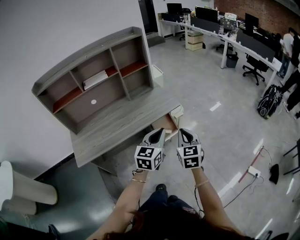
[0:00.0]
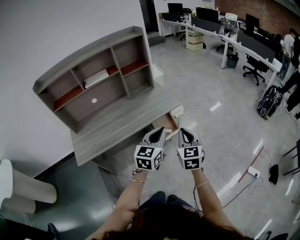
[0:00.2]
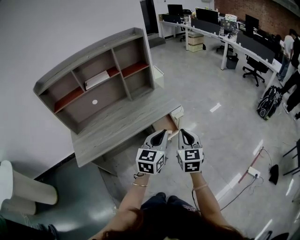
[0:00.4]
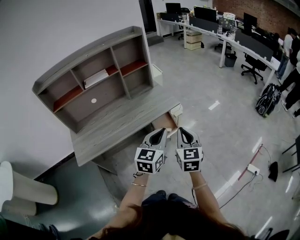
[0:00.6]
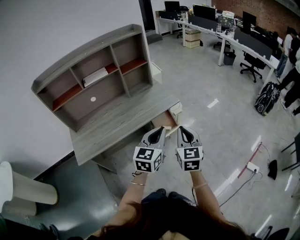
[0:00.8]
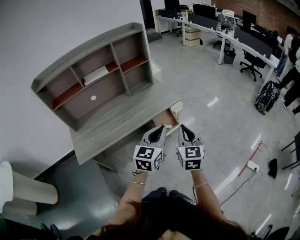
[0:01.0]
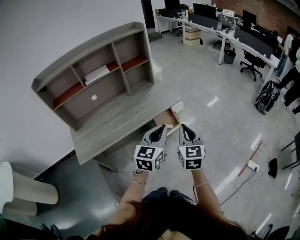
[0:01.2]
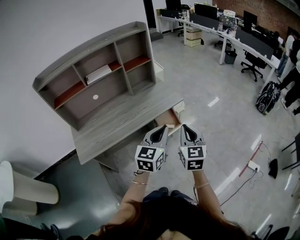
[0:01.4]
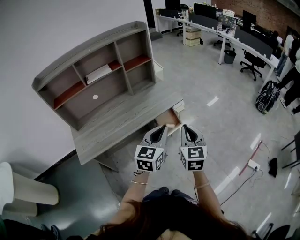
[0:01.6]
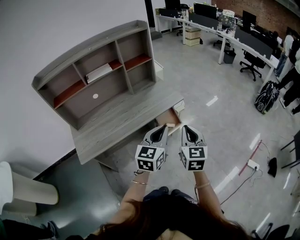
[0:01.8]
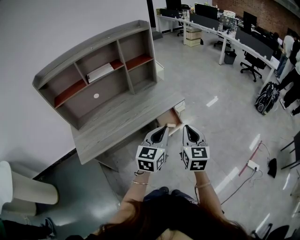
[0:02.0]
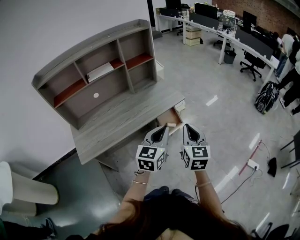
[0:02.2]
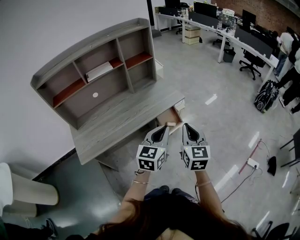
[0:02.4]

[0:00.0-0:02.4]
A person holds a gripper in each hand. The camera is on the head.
0:00.0 to 0:01.2: The right gripper moves approximately 5 cm.
0:01.2 to 0:02.4: The grippers move only a little.

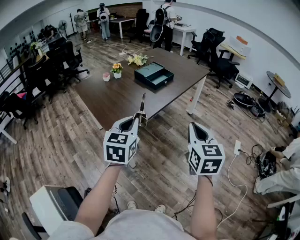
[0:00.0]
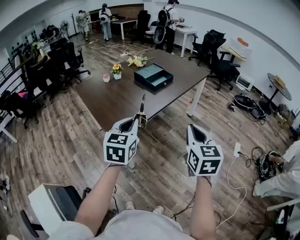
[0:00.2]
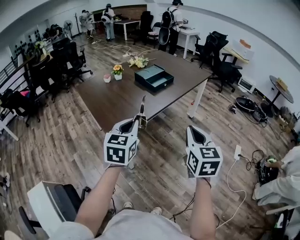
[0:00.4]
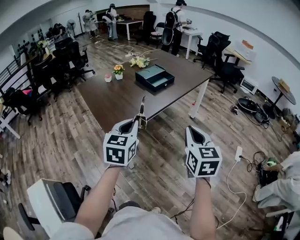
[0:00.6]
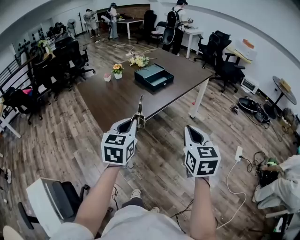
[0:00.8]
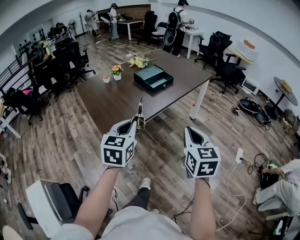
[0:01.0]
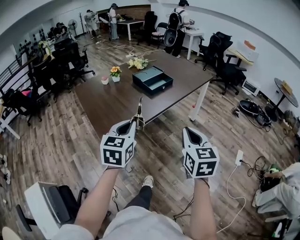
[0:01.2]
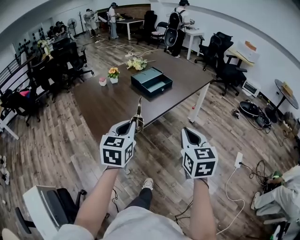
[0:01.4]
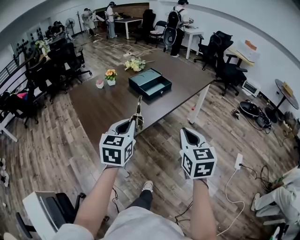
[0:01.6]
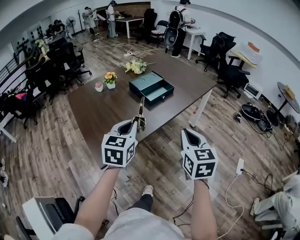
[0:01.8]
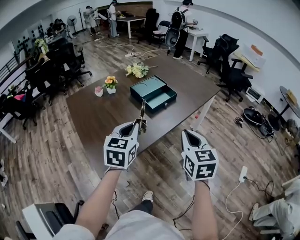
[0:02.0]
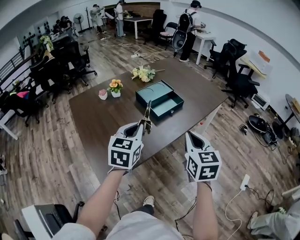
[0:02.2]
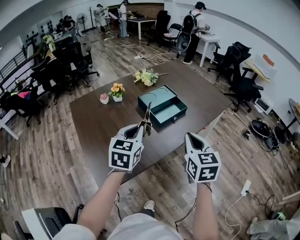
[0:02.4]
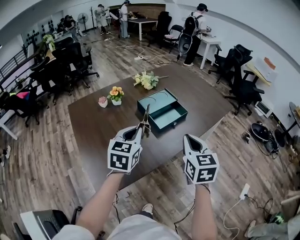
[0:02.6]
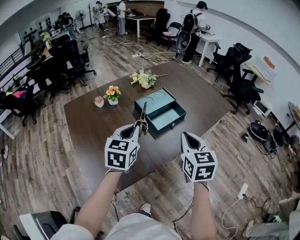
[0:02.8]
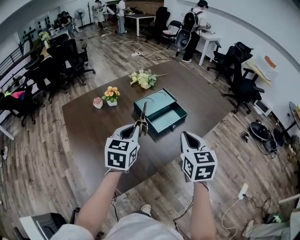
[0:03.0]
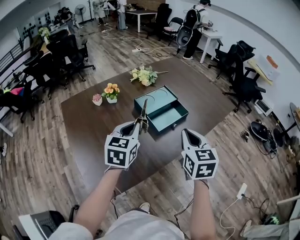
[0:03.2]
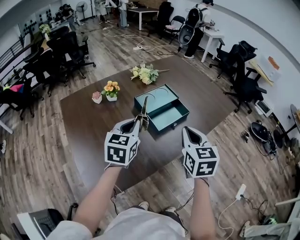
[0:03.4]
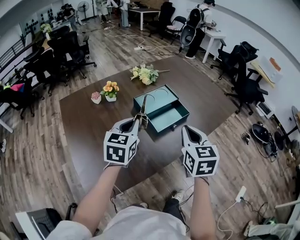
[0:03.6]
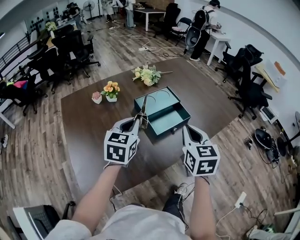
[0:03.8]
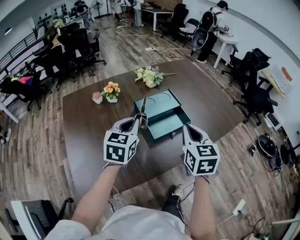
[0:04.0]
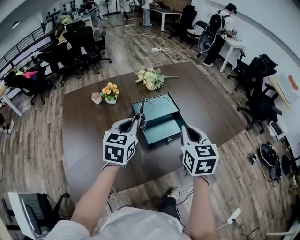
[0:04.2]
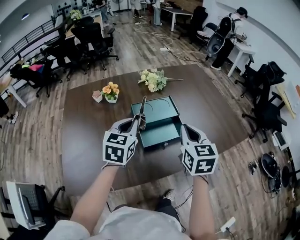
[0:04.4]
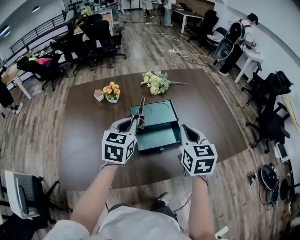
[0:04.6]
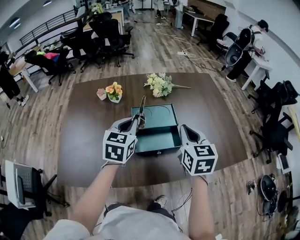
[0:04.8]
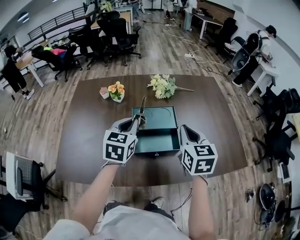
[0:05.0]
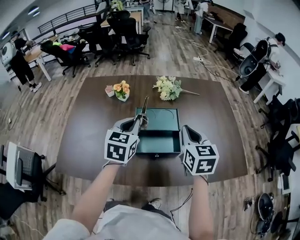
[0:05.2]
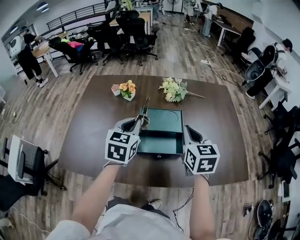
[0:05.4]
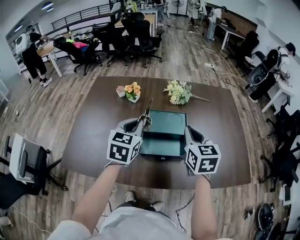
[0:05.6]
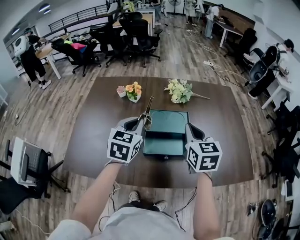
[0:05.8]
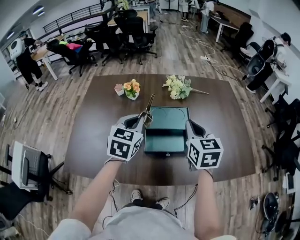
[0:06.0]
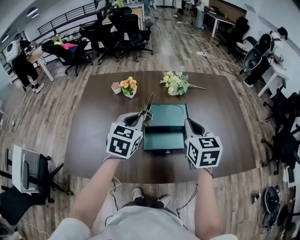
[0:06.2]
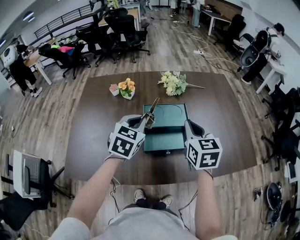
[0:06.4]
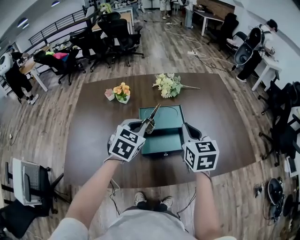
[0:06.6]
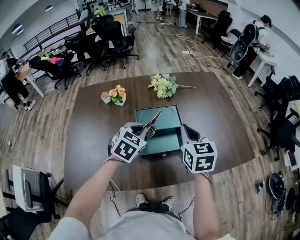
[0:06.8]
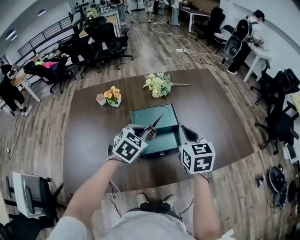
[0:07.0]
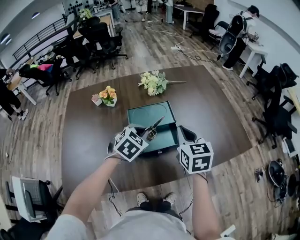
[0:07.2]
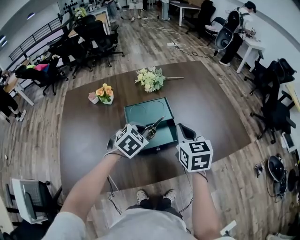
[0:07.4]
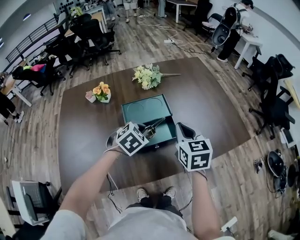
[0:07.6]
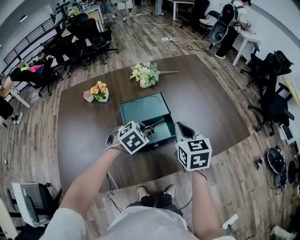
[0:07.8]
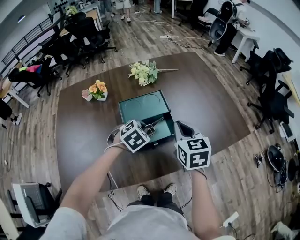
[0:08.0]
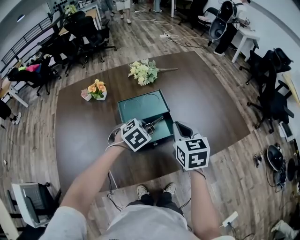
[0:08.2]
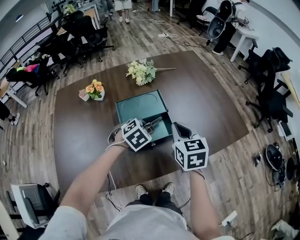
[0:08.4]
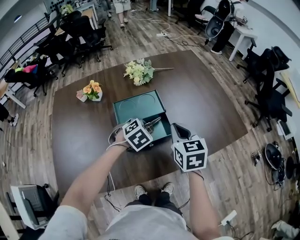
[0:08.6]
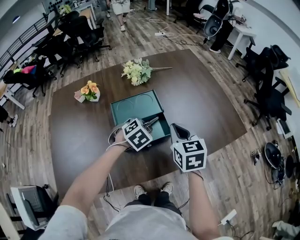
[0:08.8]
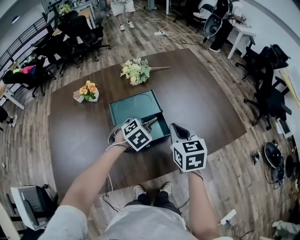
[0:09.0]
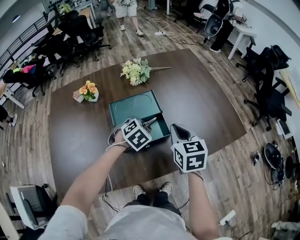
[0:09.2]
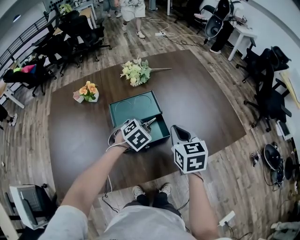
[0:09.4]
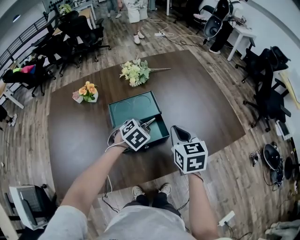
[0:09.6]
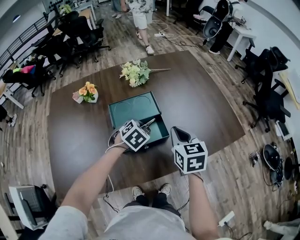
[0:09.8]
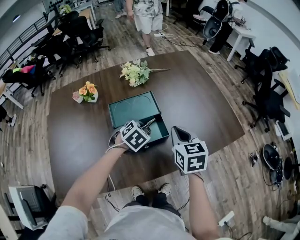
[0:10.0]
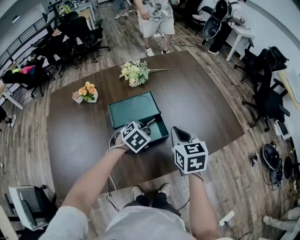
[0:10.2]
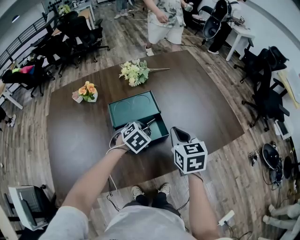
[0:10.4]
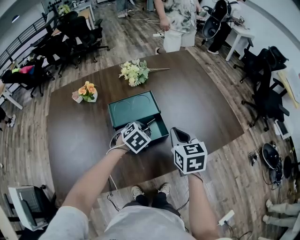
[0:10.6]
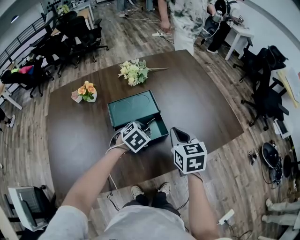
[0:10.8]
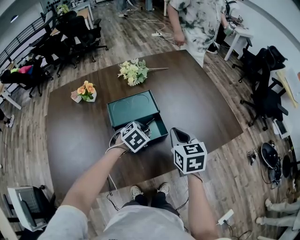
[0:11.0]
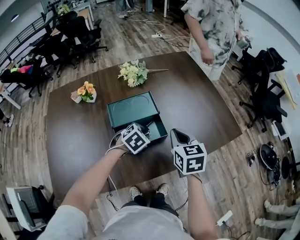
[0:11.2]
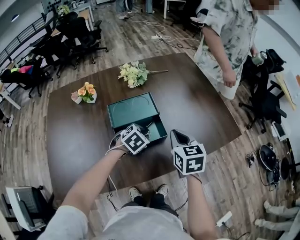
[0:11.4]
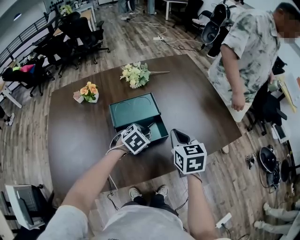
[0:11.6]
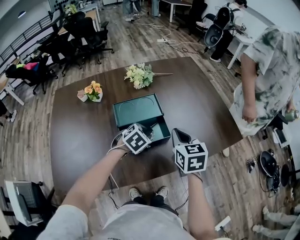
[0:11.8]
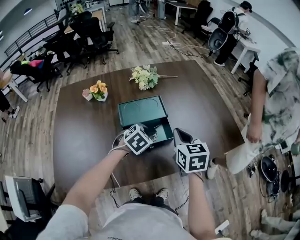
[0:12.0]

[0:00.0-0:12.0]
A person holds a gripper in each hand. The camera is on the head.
0:00.0 to 0:01.6: The right gripper travels forward by about 10 cm. The left gripper goes some 15 cm forward and to the right.
0:01.6 to 0:03.0: The grippers both shift forward by roughly 30 cm.
0:03.0 to 0:04.4: The right gripper moves forward, approximately 15 cm. Meanwhile the left gripper travels forward and to the right by approximately 15 cm.
0:04.4 to 0:06.0: The right gripper is displaced forward by about 10 cm.
0:06.0 to 0:07.6: The left gripper travels downward and to the right by some 15 cm, and swivels some 50 degrees. Meanwhile the right gripper is displaced downward by approximately 5 cm.
0:07.6 to 0:09.0: The left gripper shifts by roughly 5 cm.
0:09.0 to 0:12.0: There are only small adjustments of the grippers.

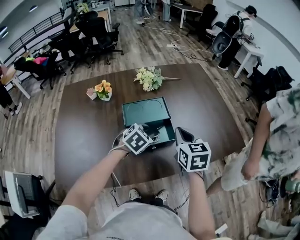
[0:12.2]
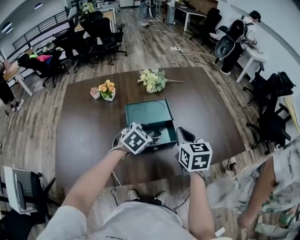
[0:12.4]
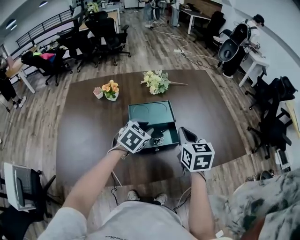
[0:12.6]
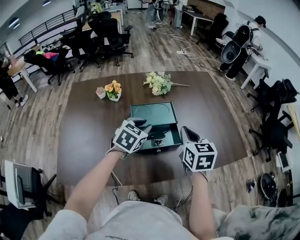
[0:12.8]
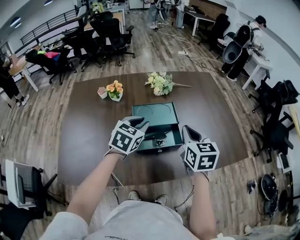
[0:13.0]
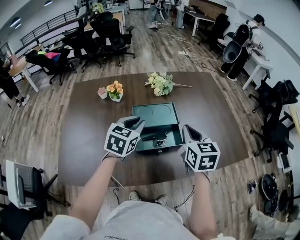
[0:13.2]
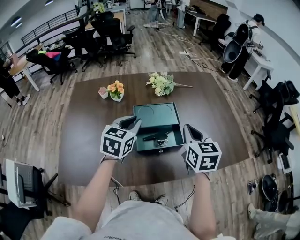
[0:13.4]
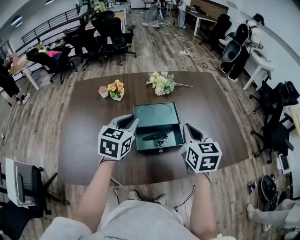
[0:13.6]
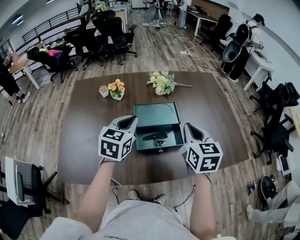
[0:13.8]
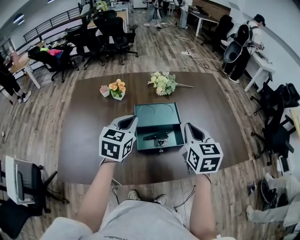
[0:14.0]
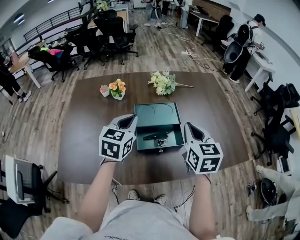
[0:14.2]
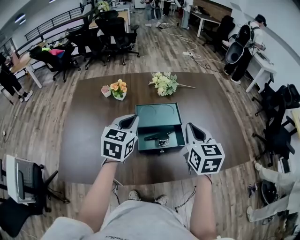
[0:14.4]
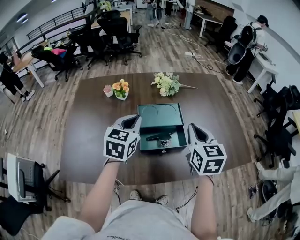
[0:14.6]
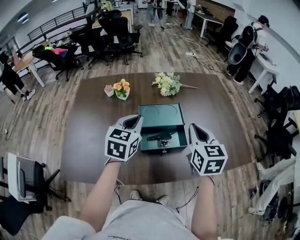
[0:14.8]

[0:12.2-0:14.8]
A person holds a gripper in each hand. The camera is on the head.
0:12.2 to 0:13.4: The left gripper heads upward and to the left, covering some 15 cm, and changes its angle by about 40 degrees.
0:13.4 to 0:14.8: The grippers make only small movements.

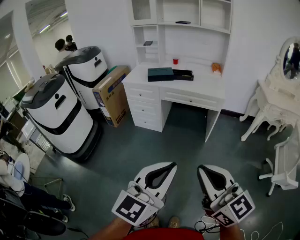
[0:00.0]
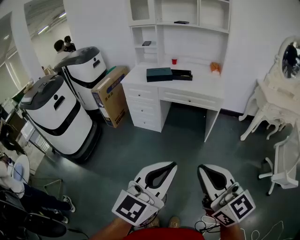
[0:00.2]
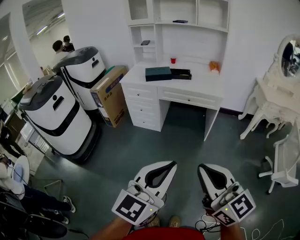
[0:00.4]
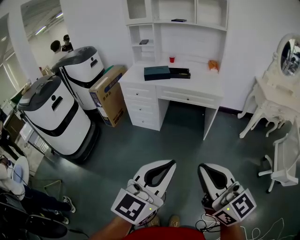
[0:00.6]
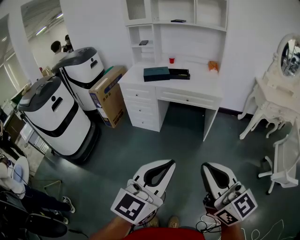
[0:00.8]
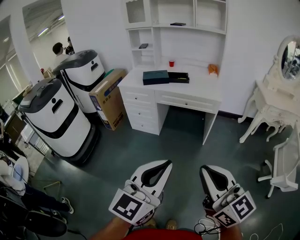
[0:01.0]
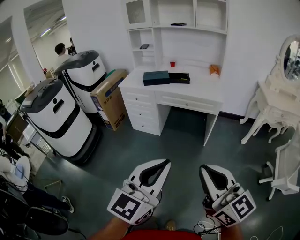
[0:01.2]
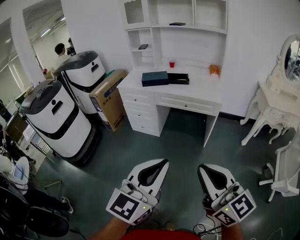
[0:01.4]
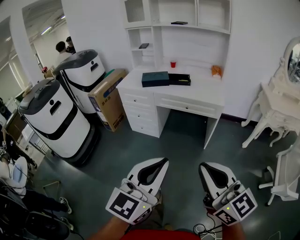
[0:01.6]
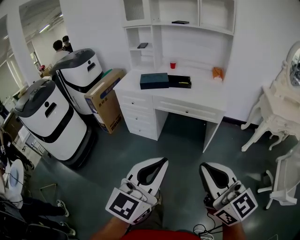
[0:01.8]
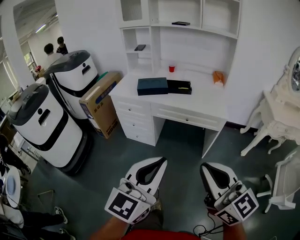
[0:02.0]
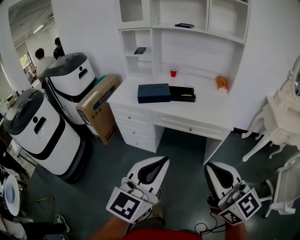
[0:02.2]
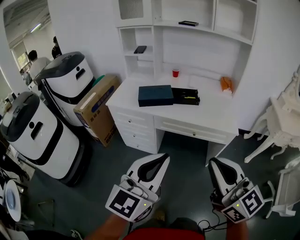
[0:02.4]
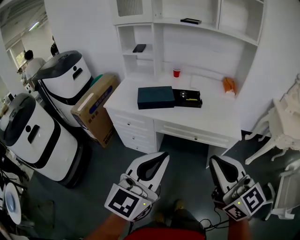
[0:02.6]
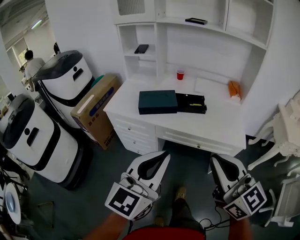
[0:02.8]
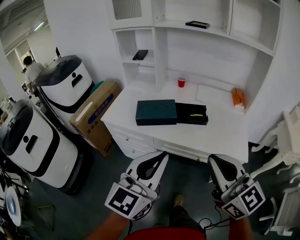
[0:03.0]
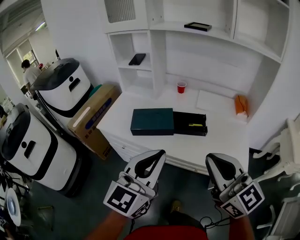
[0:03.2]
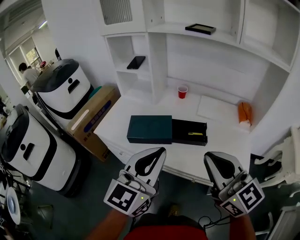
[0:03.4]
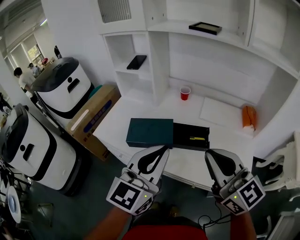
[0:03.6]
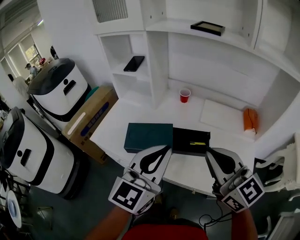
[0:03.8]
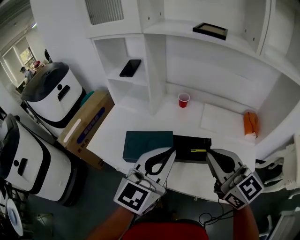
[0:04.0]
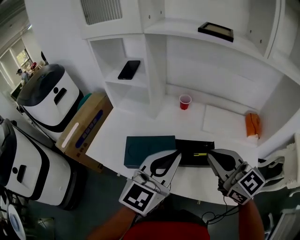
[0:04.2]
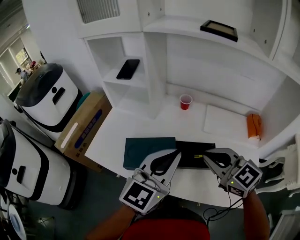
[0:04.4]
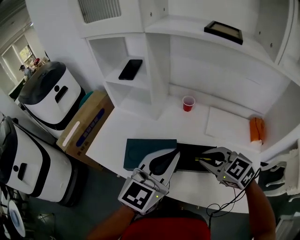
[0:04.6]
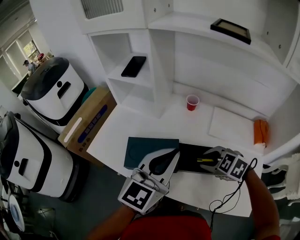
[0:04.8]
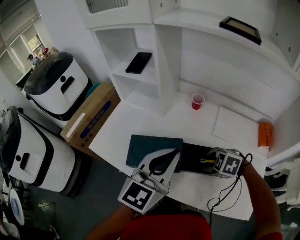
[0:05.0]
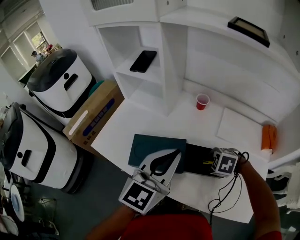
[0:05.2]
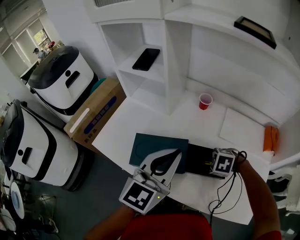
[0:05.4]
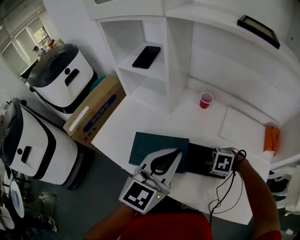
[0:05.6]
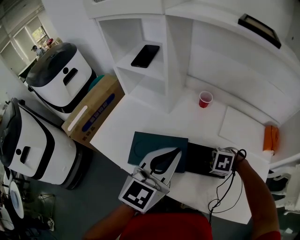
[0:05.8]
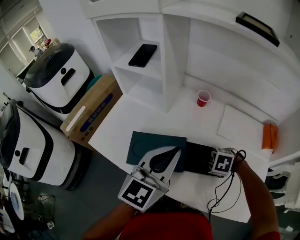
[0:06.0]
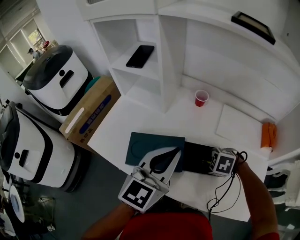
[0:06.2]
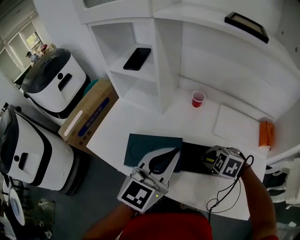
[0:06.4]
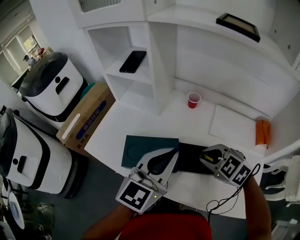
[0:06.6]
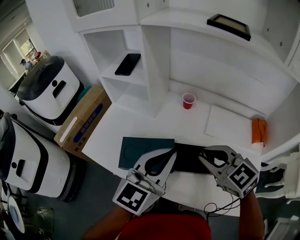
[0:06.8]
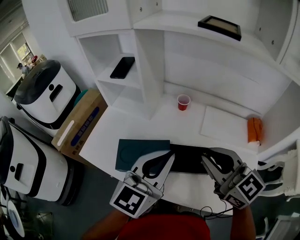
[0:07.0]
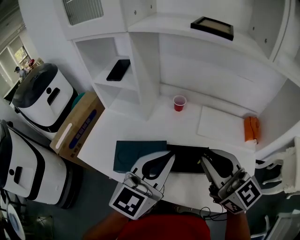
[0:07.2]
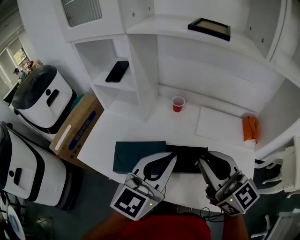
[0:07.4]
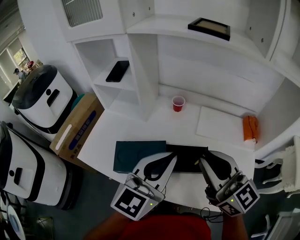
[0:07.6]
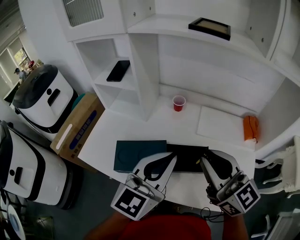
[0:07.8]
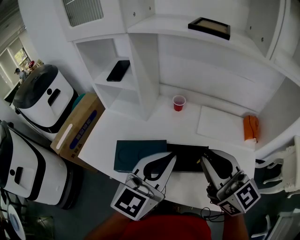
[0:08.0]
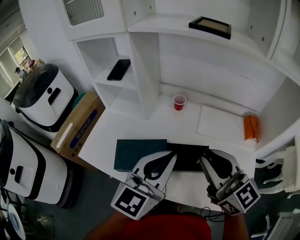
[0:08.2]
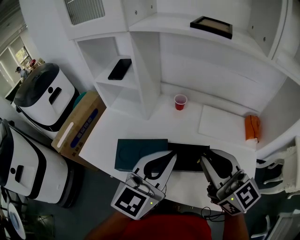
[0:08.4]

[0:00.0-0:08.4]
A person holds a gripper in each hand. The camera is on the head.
0:00.0 to 0:01.4: The left gripper moves forward, approximately 5 cm. The right gripper travels to the right and forward by roughly 10 cm.
0:01.4 to 0:02.8: Both grippers are carried forward, about 50 cm.
0:02.8 to 0:04.2: The two grippers go some 40 cm forward.
0:04.2 to 0:05.6: The left gripper shifts by some 10 cm; the right gripper travels downward by some 30 cm, tips its fingers downward by about 70 degrees, and opens.
0:05.6 to 0:07.0: The right gripper moves upward, about 30 cm, and tips its fingers upward by some 70 degrees. The left gripper shifts by approximately 5 cm.
0:07.0 to 0:08.4: The grippers make only small movements.
